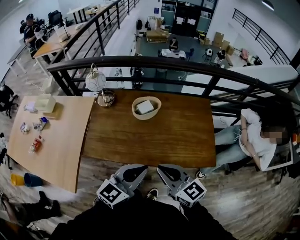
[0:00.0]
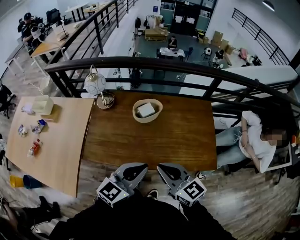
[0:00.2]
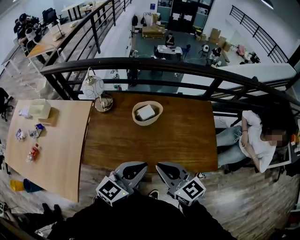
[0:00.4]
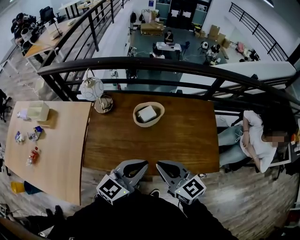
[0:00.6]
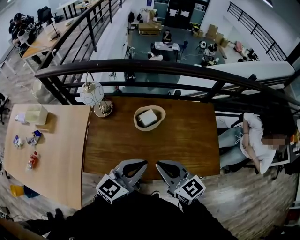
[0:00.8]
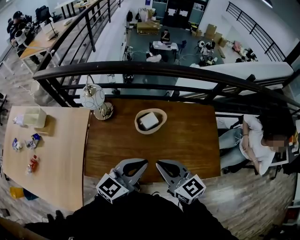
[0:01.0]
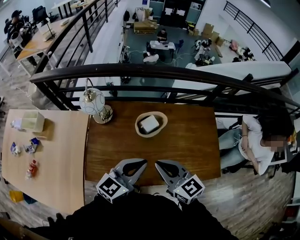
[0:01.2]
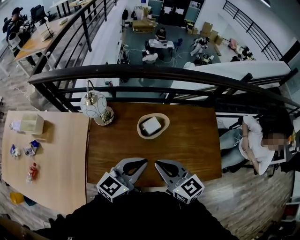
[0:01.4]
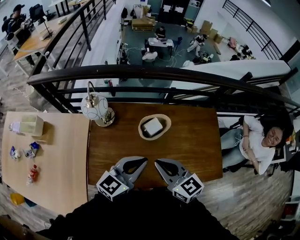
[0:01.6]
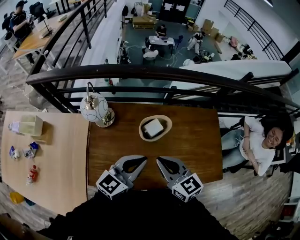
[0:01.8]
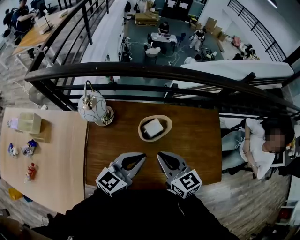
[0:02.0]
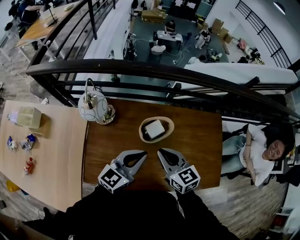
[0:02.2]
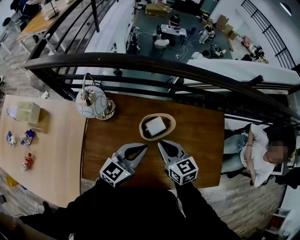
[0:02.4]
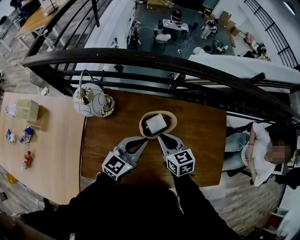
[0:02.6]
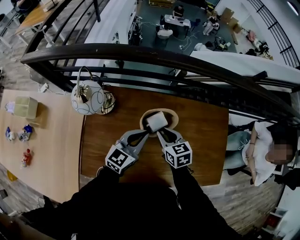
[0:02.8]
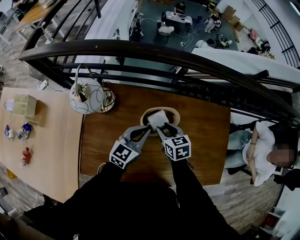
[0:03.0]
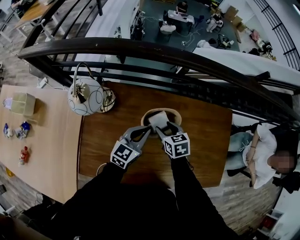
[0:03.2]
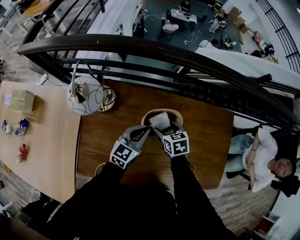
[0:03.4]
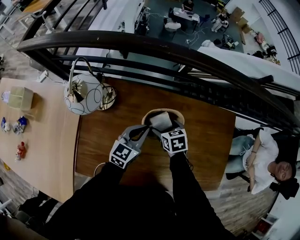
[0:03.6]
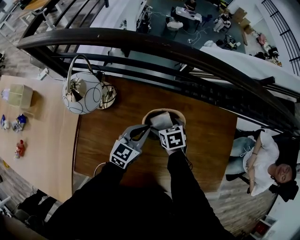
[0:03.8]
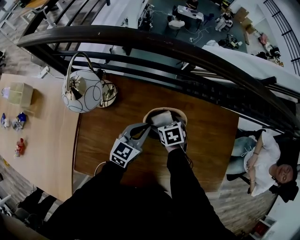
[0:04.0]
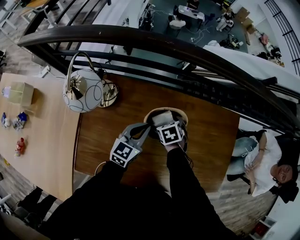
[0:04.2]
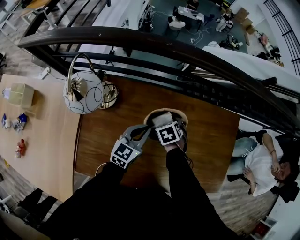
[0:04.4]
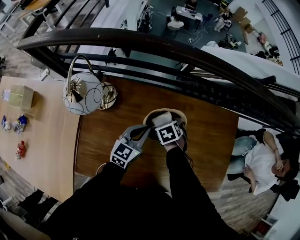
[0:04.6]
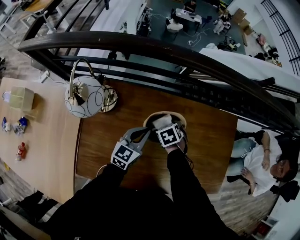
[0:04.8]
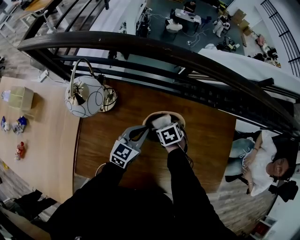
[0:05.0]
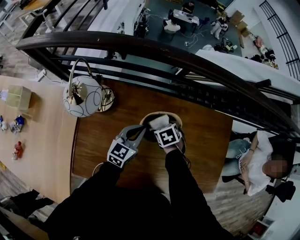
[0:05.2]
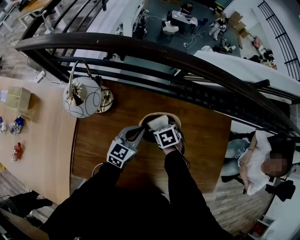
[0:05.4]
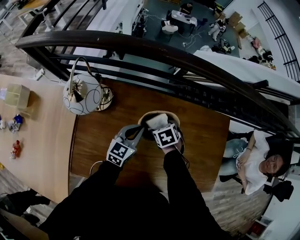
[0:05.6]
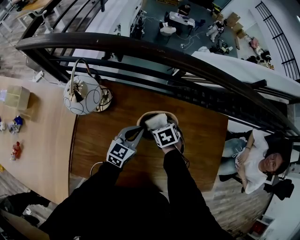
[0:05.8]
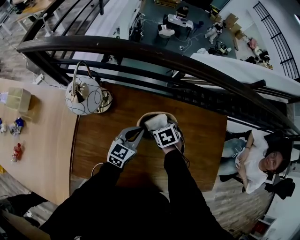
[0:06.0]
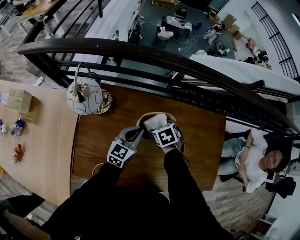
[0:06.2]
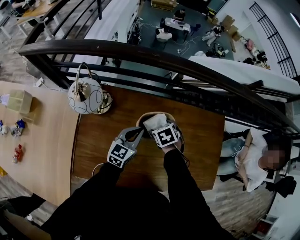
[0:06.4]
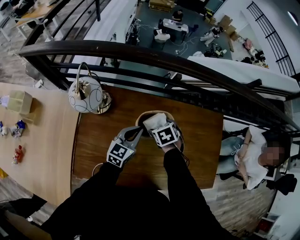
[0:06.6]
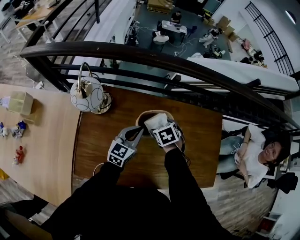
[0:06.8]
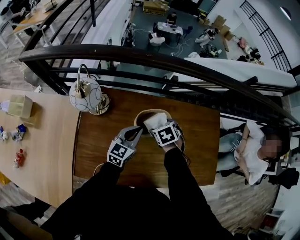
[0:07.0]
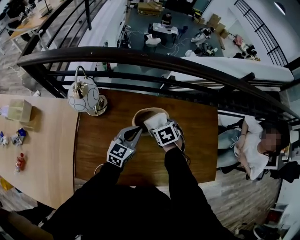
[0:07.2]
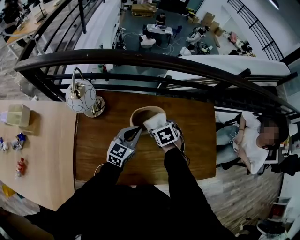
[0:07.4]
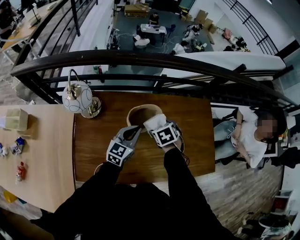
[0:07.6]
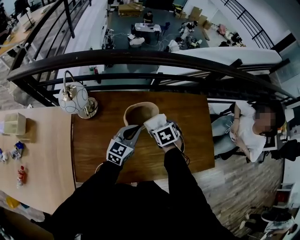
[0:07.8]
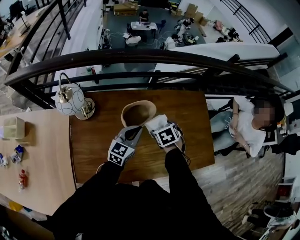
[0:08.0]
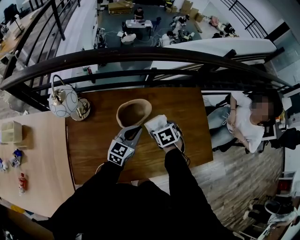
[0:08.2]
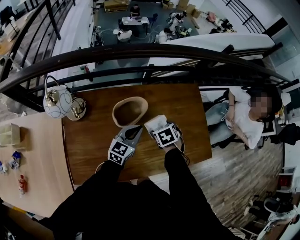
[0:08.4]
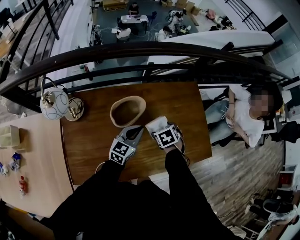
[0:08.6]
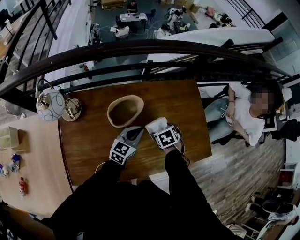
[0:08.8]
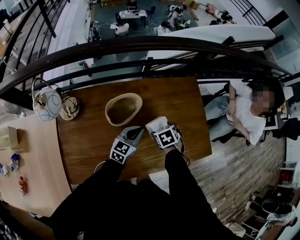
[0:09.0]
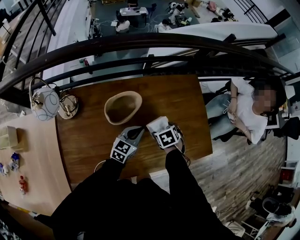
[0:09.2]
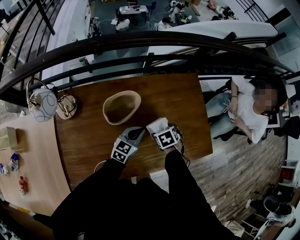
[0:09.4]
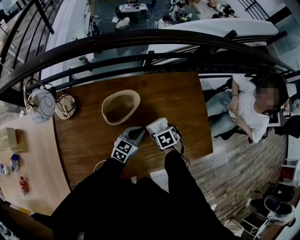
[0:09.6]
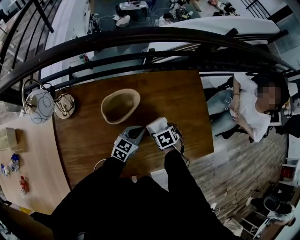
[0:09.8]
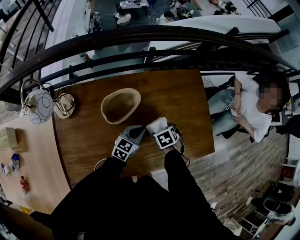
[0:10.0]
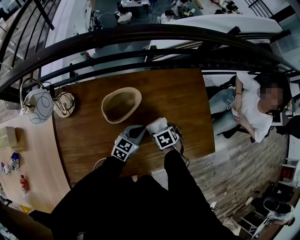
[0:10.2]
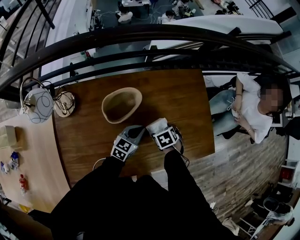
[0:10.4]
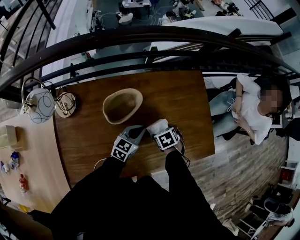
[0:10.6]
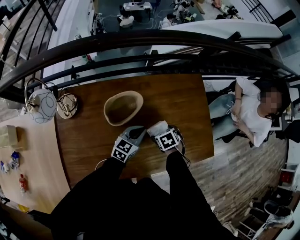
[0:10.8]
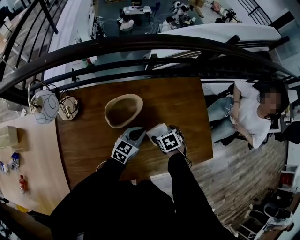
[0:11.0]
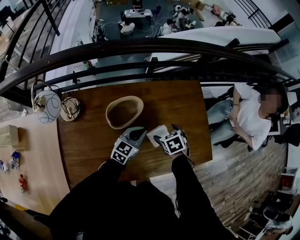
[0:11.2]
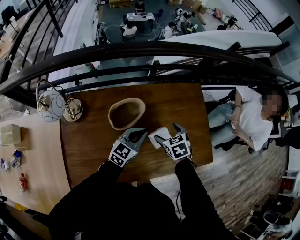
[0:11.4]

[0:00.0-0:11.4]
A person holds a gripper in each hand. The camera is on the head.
0:00.0 to 0:01.4: The grippers both shift forward and to the left by approximately 25 cm.
0:01.4 to 0:02.8: The two grippers go roughly 25 cm forward and downward. The right gripper changes its angle by approximately 30 degrees.
0:02.8 to 0:04.2: The right gripper travels downward and forward by approximately 15 cm, tips its fingers downward by some 30 degrees, and opens its fingers; the left gripper moves downward, roughly 10 cm.
0:04.2 to 0:05.6: There are only small adjustments of the grippers.
0:05.6 to 0:07.2: Both grippers travel together upward, some 5 cm.
0:07.2 to 0:08.6: Both grippers travel together to the right, roughly 15 cm.
0:08.6 to 0:10.0: Both grippers move downward, some 10 cm.
0:10.0 to 0:11.4: The two grippers go some 10 cm upward.

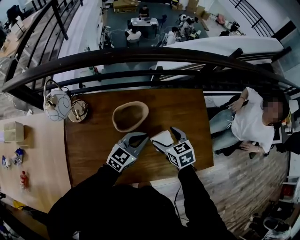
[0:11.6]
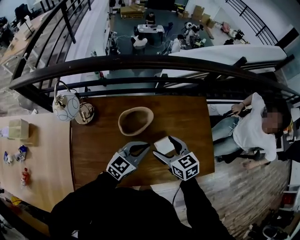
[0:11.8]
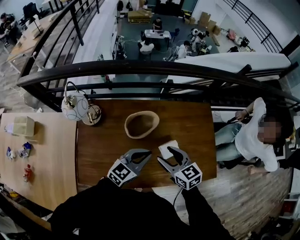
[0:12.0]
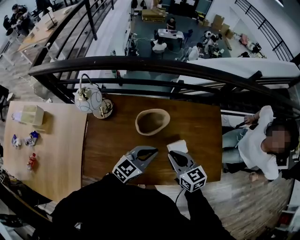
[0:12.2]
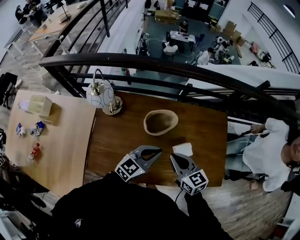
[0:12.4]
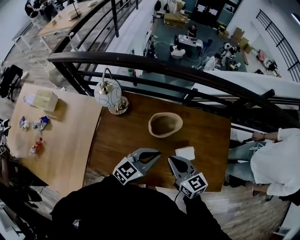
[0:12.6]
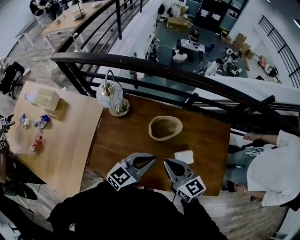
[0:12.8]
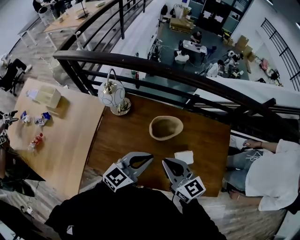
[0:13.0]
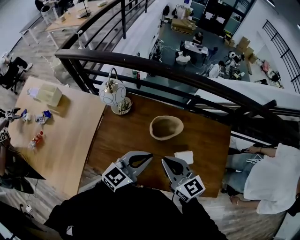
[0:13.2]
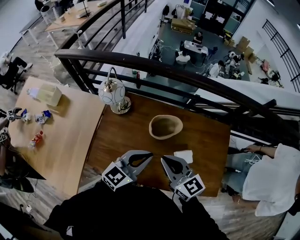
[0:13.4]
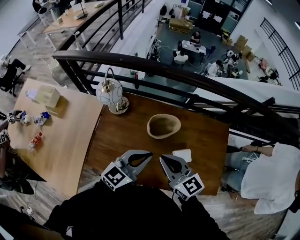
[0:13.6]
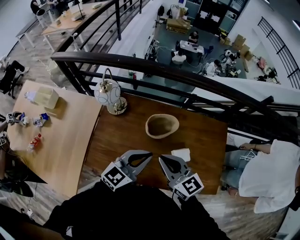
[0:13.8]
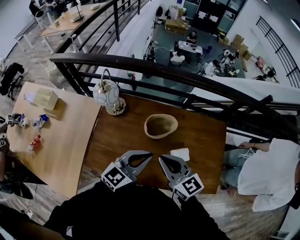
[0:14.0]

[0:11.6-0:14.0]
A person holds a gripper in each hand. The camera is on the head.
0:11.6 to 0:12.8: The two grippers go about 20 cm upward, to the left and backward. The right gripper points its fingers some 30 degrees further upward, and closes up.
0:12.8 to 0:14.0: There are only small adjustments of the grippers.

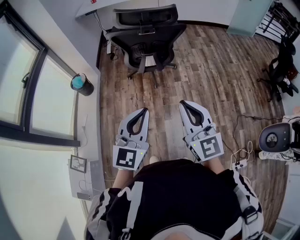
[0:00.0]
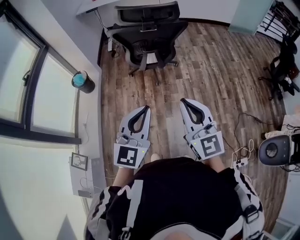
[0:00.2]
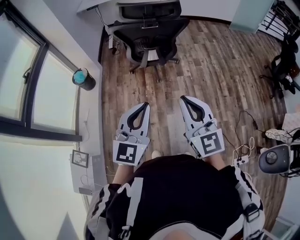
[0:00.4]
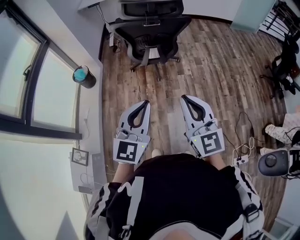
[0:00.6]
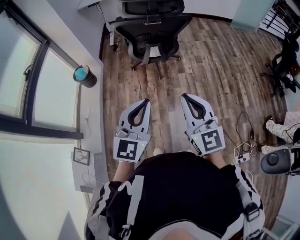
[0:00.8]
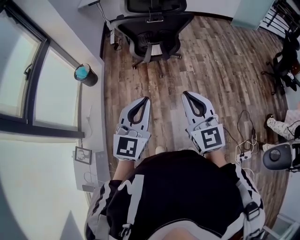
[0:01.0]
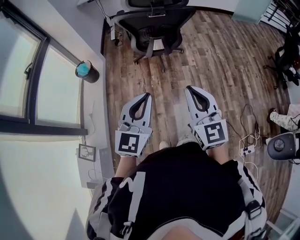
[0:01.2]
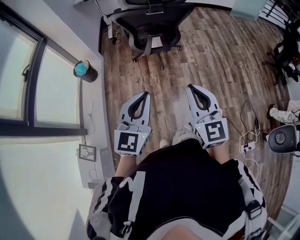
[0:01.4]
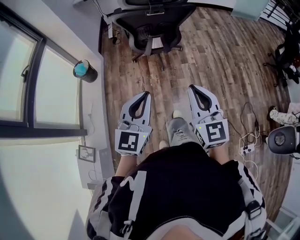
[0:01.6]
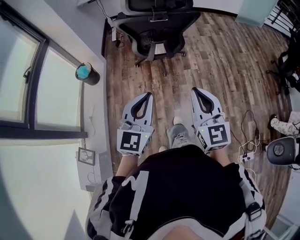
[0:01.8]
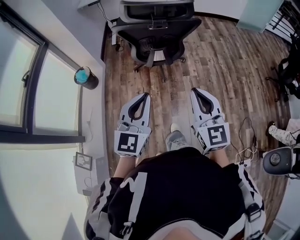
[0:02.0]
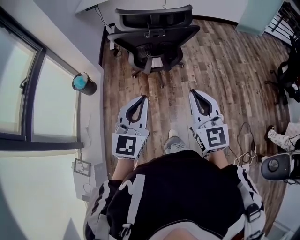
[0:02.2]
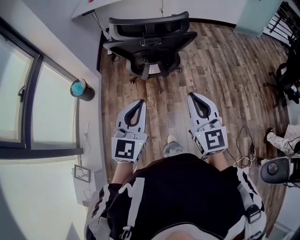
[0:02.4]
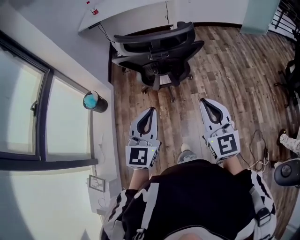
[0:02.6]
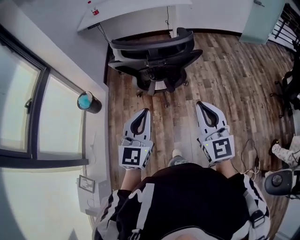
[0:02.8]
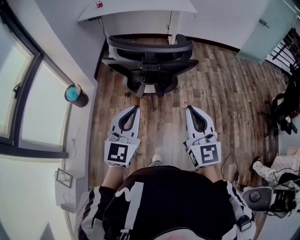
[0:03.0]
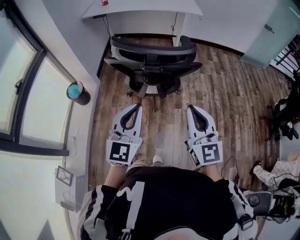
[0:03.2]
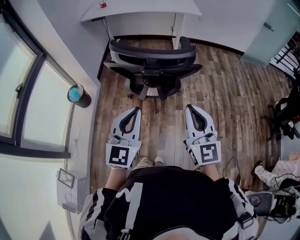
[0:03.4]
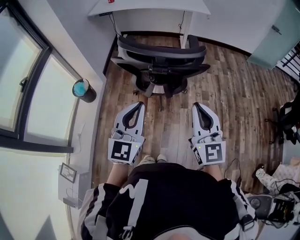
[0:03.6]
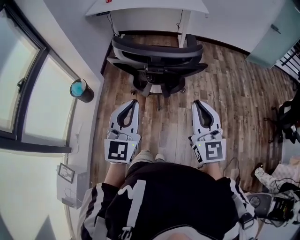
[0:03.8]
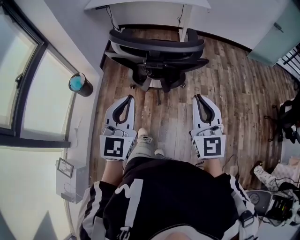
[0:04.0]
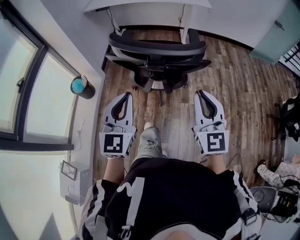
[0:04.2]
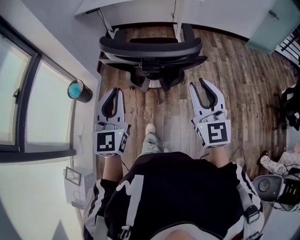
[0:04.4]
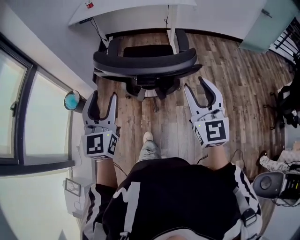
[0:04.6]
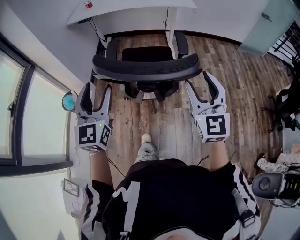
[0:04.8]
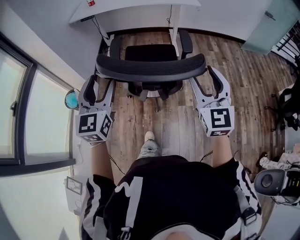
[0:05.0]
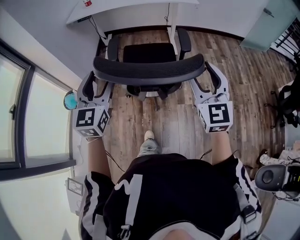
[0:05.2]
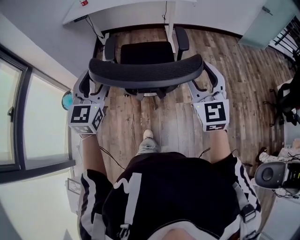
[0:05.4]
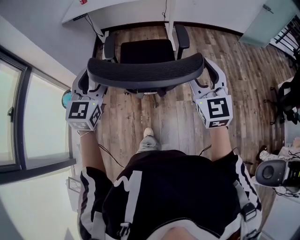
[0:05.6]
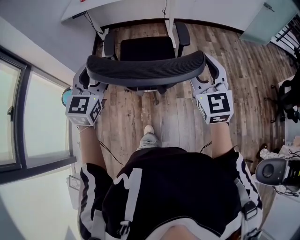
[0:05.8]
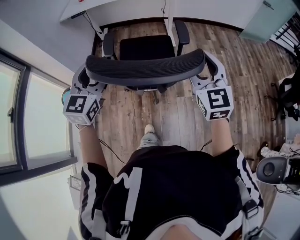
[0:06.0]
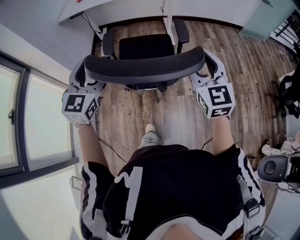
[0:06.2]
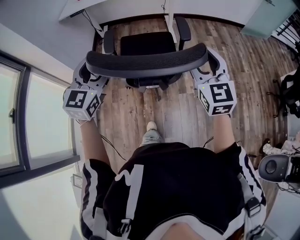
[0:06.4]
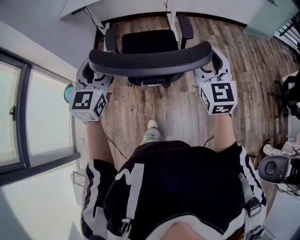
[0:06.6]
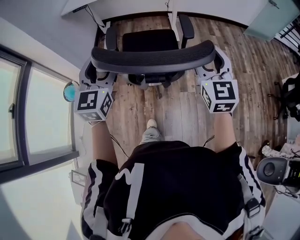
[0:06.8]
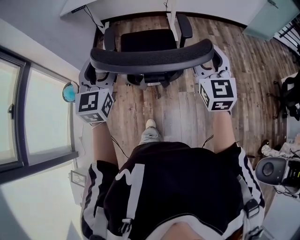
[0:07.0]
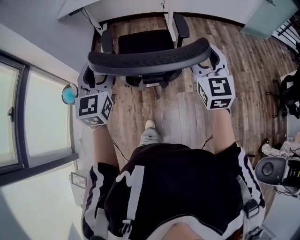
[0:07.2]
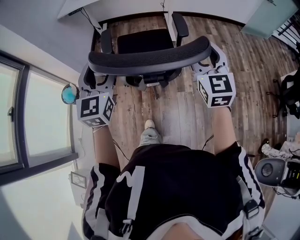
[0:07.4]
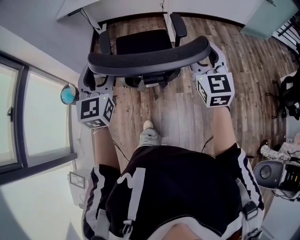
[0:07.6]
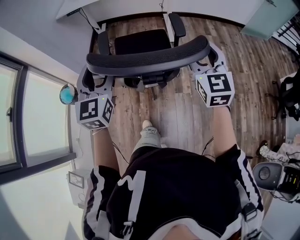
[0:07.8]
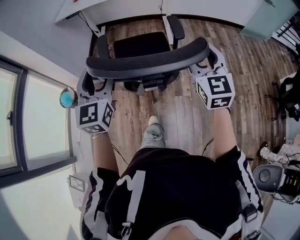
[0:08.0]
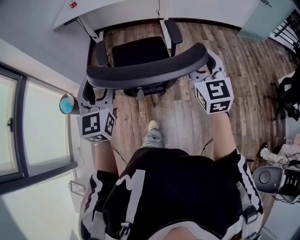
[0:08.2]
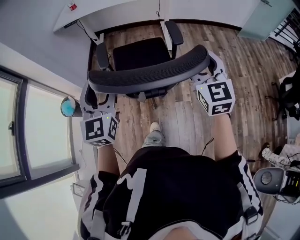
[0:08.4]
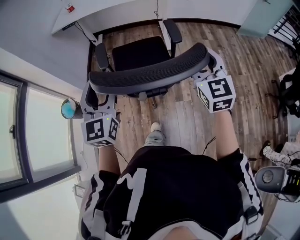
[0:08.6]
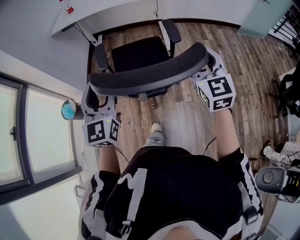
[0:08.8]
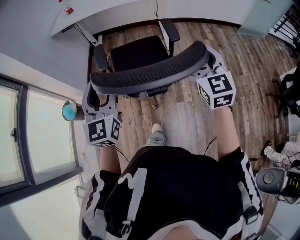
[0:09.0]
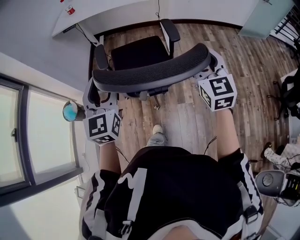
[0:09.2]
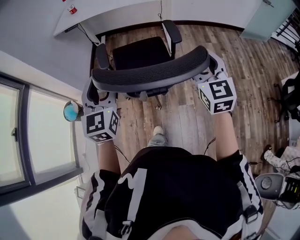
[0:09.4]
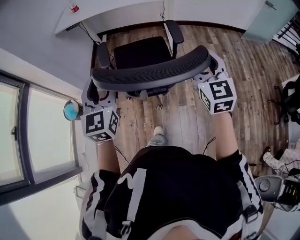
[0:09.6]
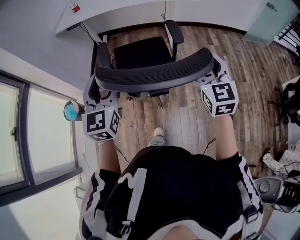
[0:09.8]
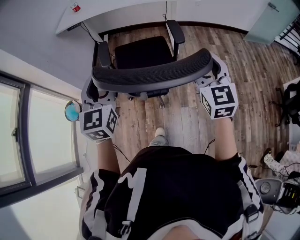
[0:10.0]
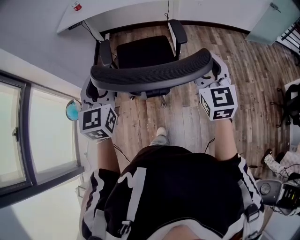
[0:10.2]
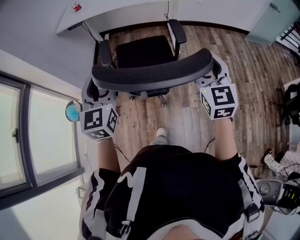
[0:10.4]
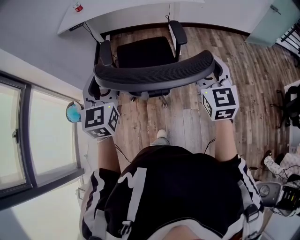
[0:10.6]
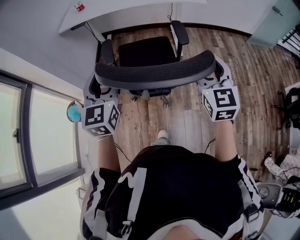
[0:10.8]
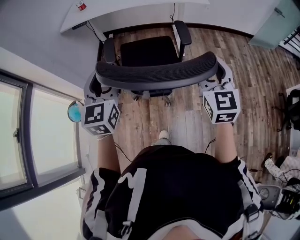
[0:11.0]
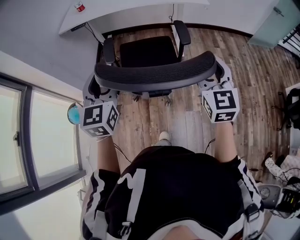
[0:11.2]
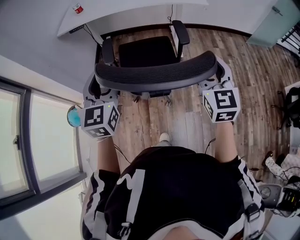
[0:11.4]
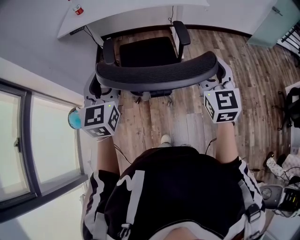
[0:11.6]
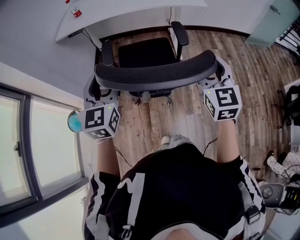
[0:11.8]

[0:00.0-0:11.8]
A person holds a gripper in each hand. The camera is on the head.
0:00.0 to 0:01.4: The left gripper moves to the left, approximately 5 cm. Meanwhile the right gripper moves some 5 cm.
0:01.4 to 0:03.0: Both grippers travel together forward, some 25 cm.
0:03.0 to 0:04.4: The right gripper heads forward, covering approximately 10 cm, and opens up. Meanwhile the left gripper heads forward and to the left, covering approximately 10 cm.
0:04.4 to 0:06.0: Both grippers travel together forward, some 15 cm. The left gripper opens its fingers, while the right gripper opens.
0:06.0 to 0:07.4: The grippers stay close to where they were, moving slightly.
0:07.4 to 0:08.8: The right gripper goes approximately 5 cm forward.
0:08.8 to 0:10.4: The left gripper goes some 10 cm forward, while the right gripper heads forward, covering some 5 cm.
0:10.4 to 0:11.8: The grippers both shift forward by some 5 cm.
